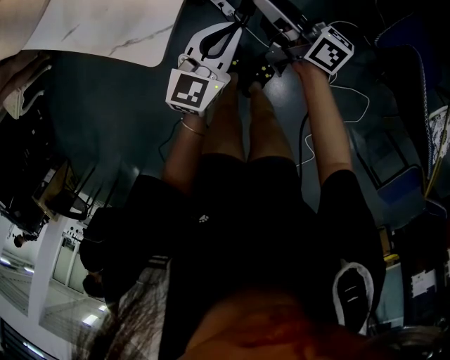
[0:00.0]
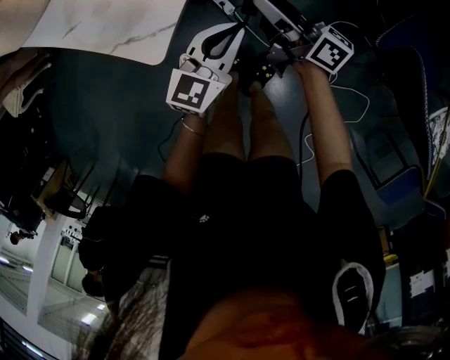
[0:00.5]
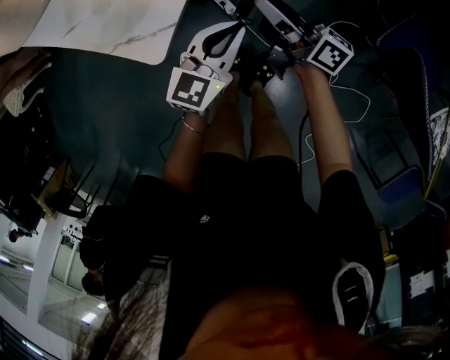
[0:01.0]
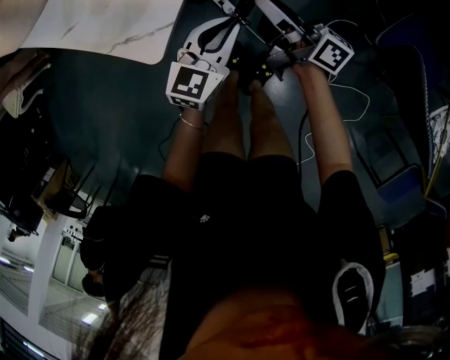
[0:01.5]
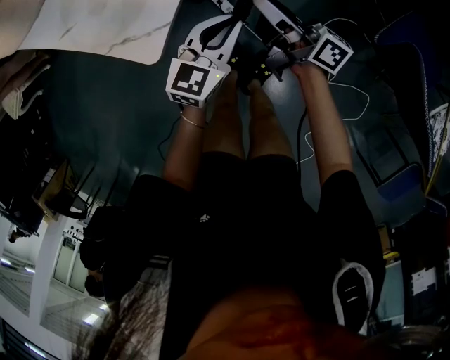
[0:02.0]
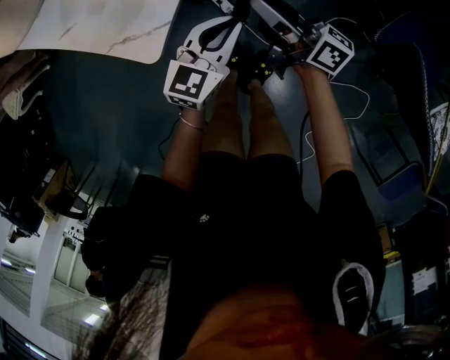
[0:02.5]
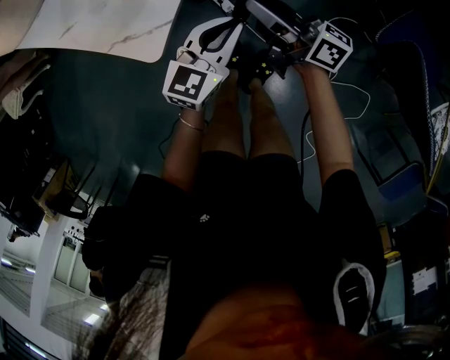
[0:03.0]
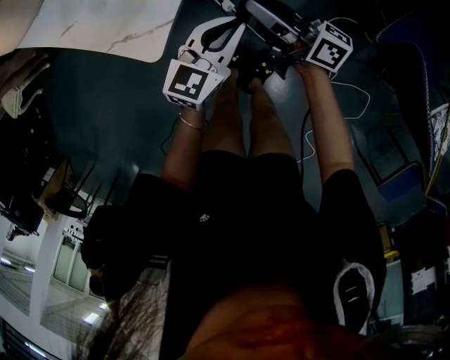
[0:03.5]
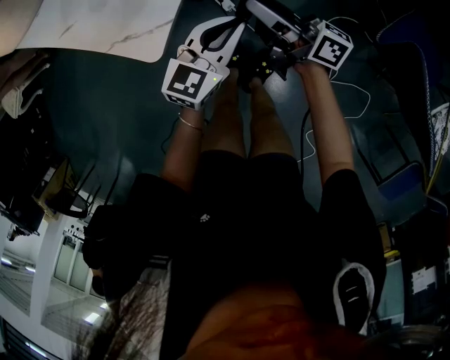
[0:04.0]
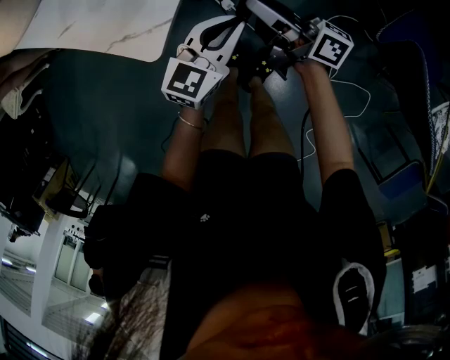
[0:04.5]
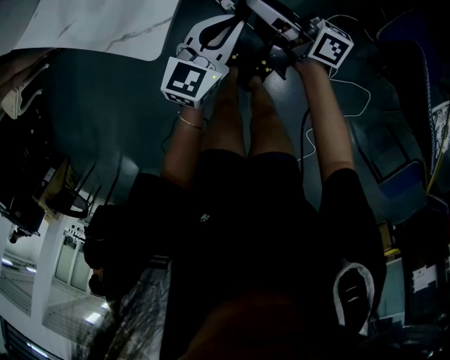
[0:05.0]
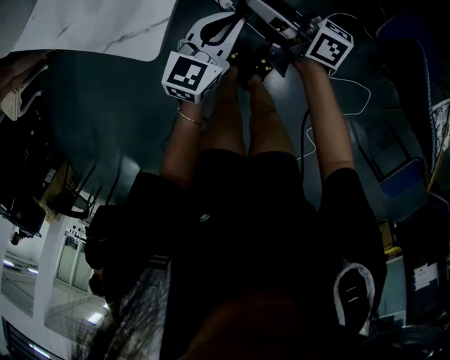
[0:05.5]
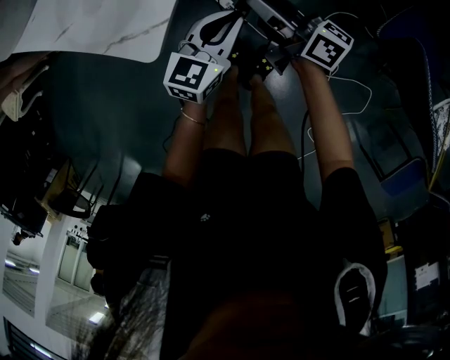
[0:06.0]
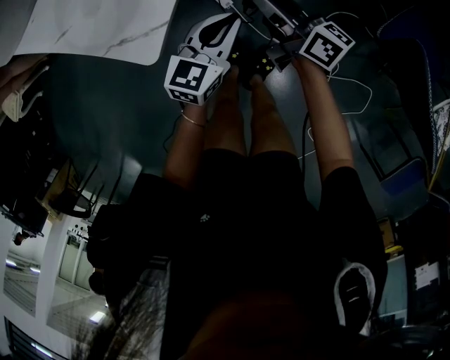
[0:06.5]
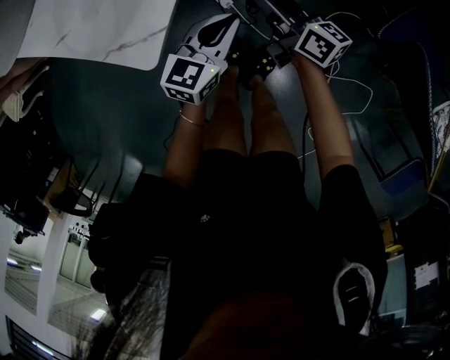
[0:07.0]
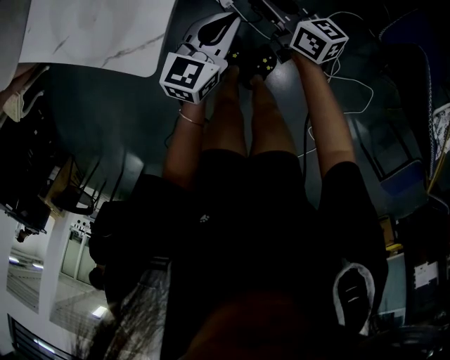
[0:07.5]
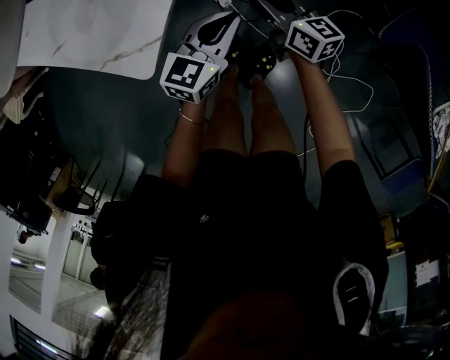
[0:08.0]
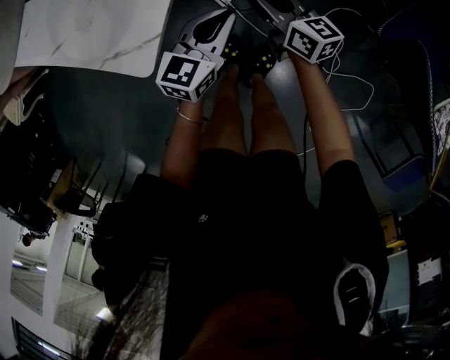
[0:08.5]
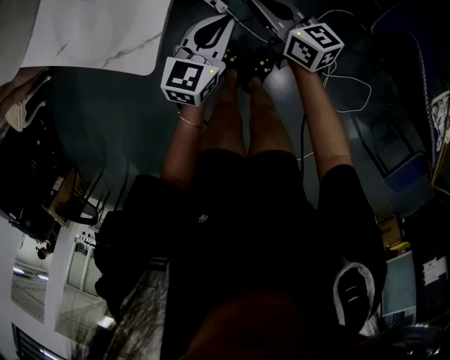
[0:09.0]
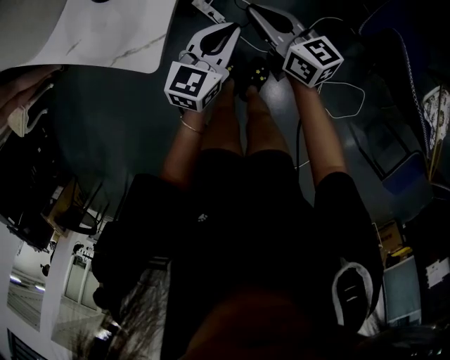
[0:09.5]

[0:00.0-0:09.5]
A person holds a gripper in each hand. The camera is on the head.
0:00.0 to 0:05.5: The grippers make only small movements.
0:05.5 to 0:07.5: The right gripper shifts approximately 10 cm downward, and turns by about 30 degrees.
0:07.5 to 0:09.5: The left gripper changes place by approximately 5 cm. Meanwhile the right gripper travels upward by approximately 10 cm.

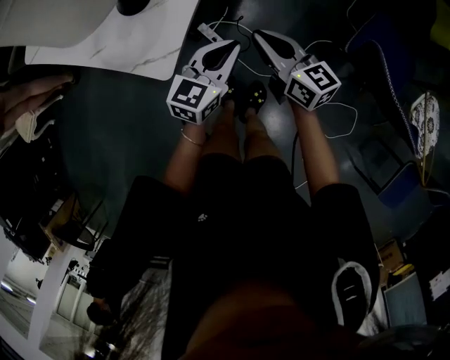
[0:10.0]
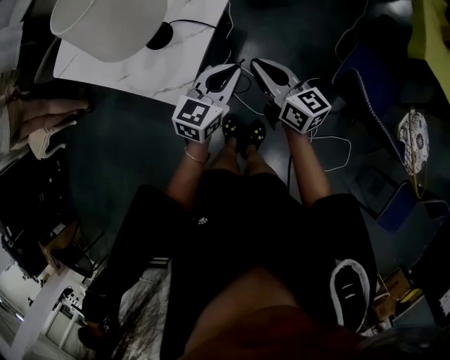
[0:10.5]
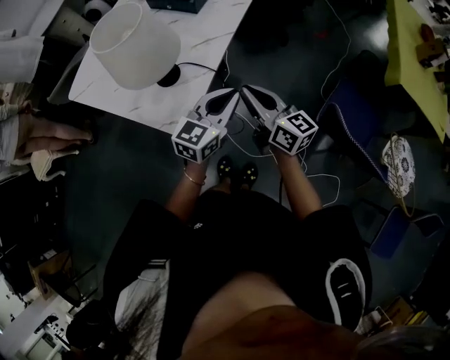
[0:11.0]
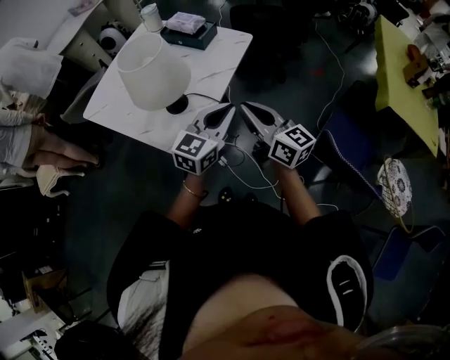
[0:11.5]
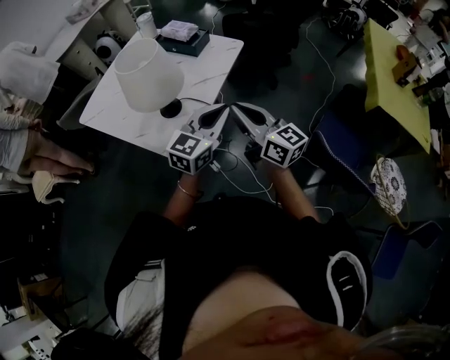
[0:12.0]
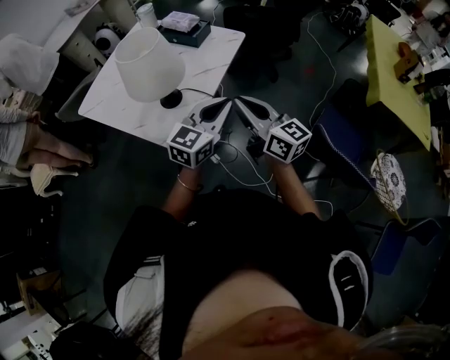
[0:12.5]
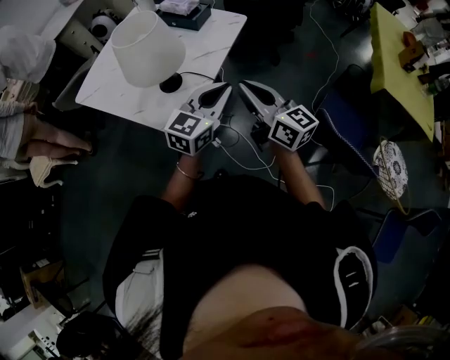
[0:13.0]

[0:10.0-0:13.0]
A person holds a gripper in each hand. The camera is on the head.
0:10.0 to 0:11.5: The grippers both shift upward by some 25 cm.
0:11.5 to 0:13.0: The grippers stay close to where they were, moving slightly.

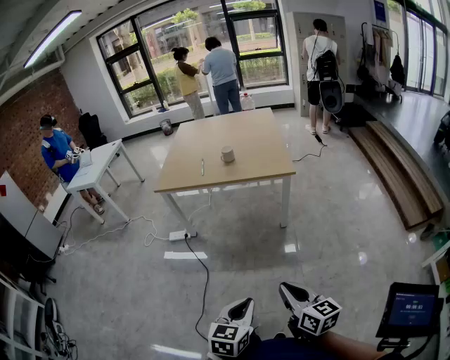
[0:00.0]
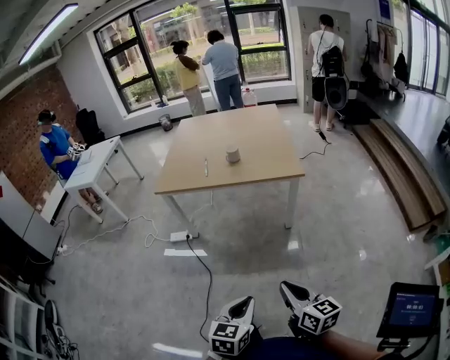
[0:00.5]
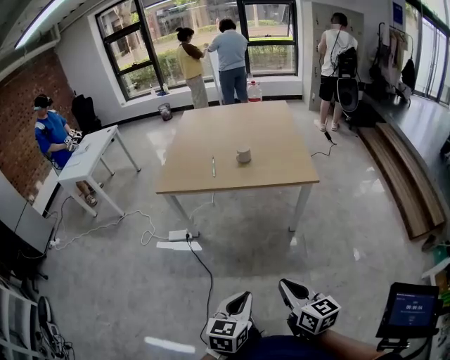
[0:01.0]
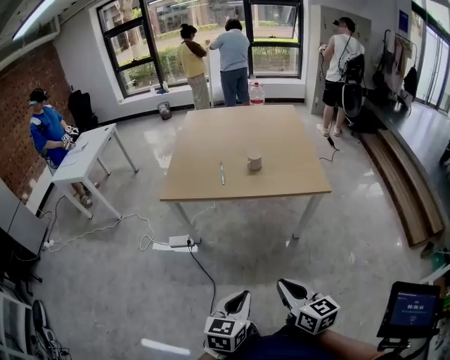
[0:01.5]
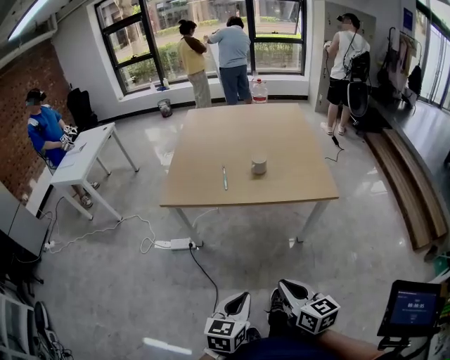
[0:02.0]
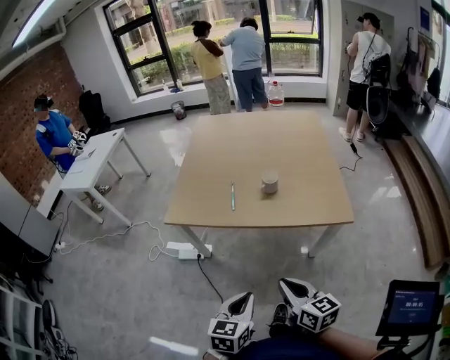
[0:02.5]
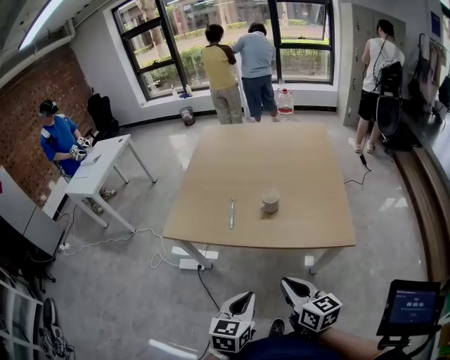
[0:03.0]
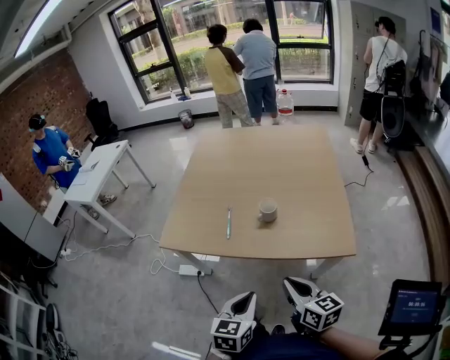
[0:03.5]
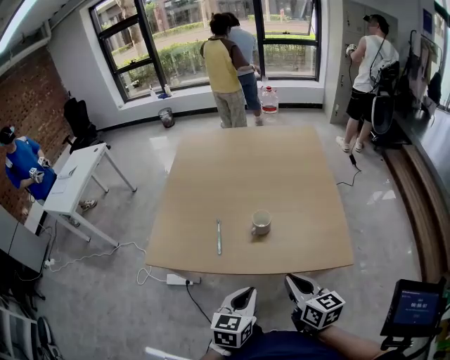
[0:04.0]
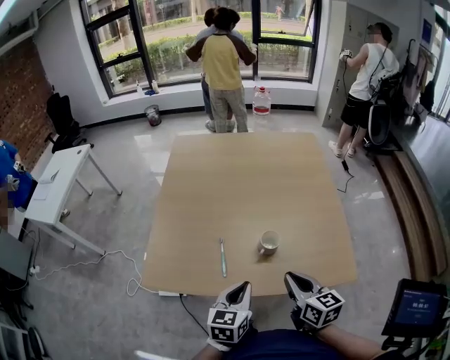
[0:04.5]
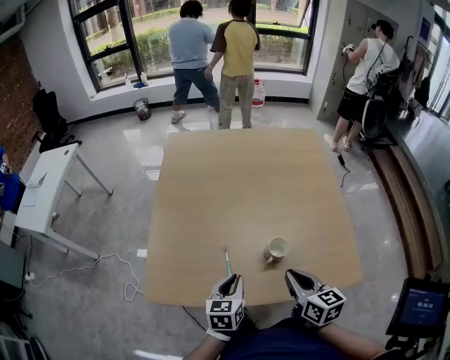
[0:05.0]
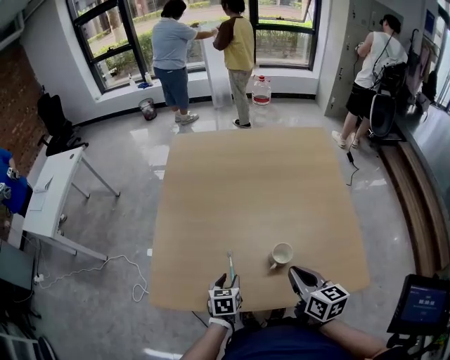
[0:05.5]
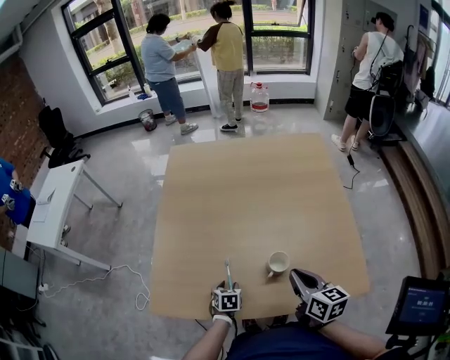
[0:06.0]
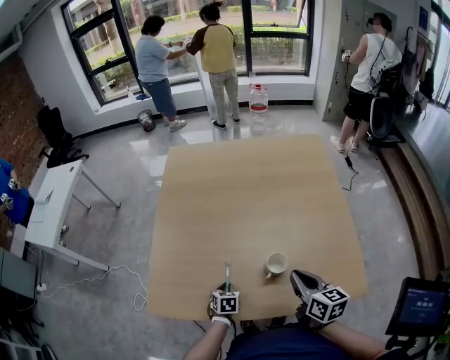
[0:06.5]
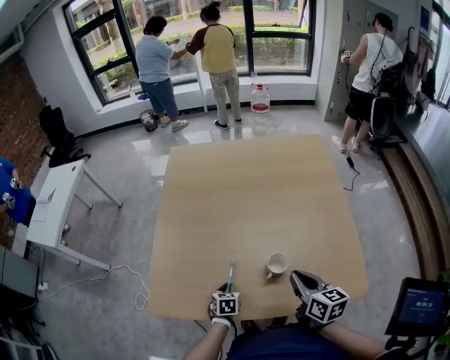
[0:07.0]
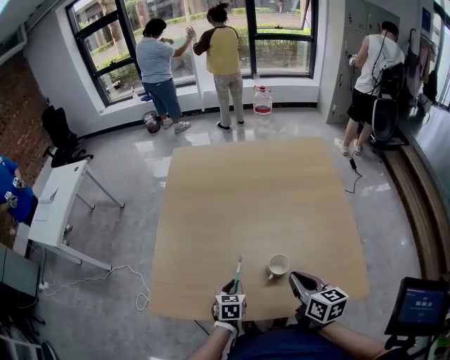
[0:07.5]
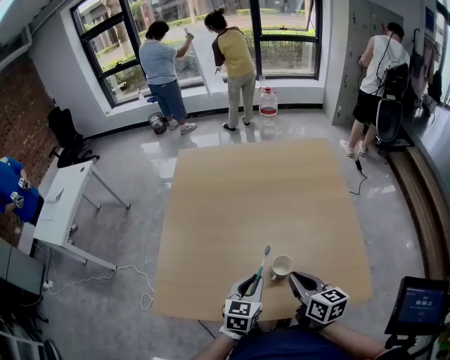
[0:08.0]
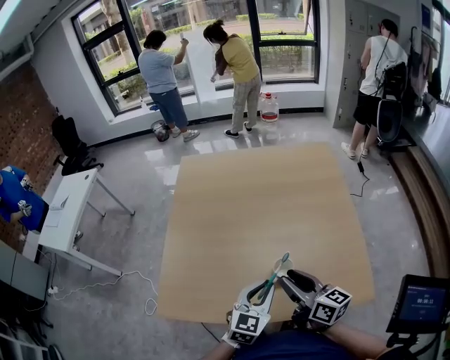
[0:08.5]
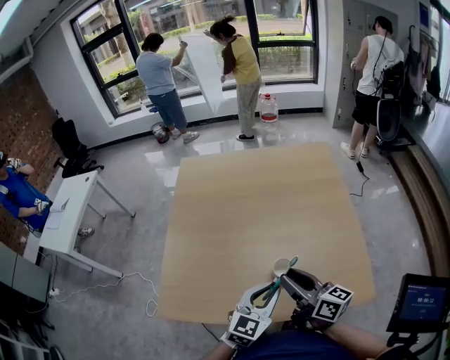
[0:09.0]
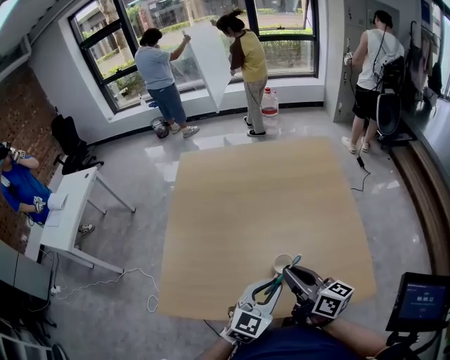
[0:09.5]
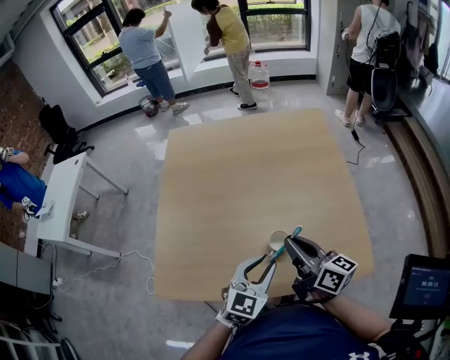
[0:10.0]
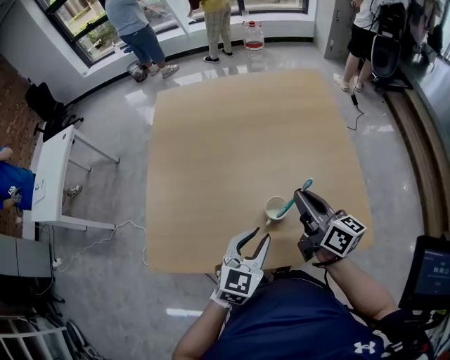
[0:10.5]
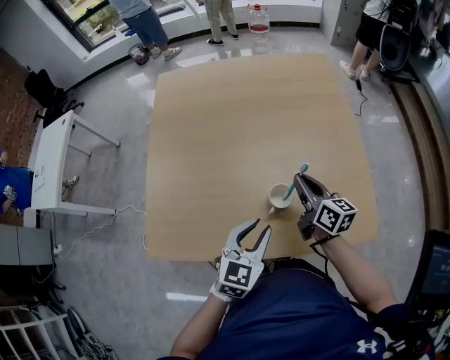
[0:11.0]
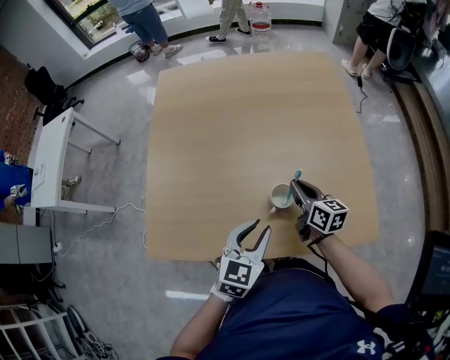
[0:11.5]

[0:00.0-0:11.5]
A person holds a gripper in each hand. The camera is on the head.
0:00.0 to 0:02.0: Both grippers travel together forward and to the left, about 35 cm.
0:02.0 to 0:04.0: The grippers both shift forward by roughly 35 cm.
0:04.0 to 0:06.0: The right gripper heads forward, covering some 20 cm, while the left gripper heads forward, downward and to the left, covering roughly 40 cm, points its fingers approximately 30 degrees further downward, and opens its fingers.
0:06.0 to 0:07.5: The left gripper heads upward, covering about 5 cm, and closes.
0:07.5 to 0:09.5: The right gripper moves upward, approximately 5 cm, turns by about 20 degrees, and opens and closes again. The left gripper goes approximately 25 cm upward and to the right, and rotates about 40 degrees.
0:09.5 to 0:11.5: The left gripper heads downward, covering approximately 5 cm. The right gripper goes approximately 20 cm downward and forward, and turns by roughly 20 degrees.

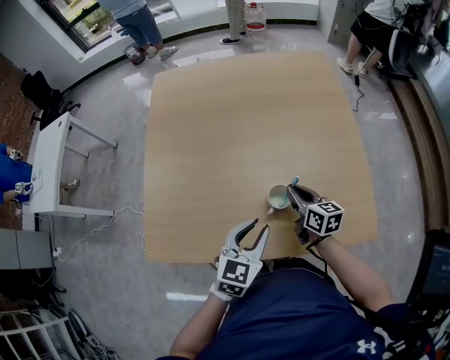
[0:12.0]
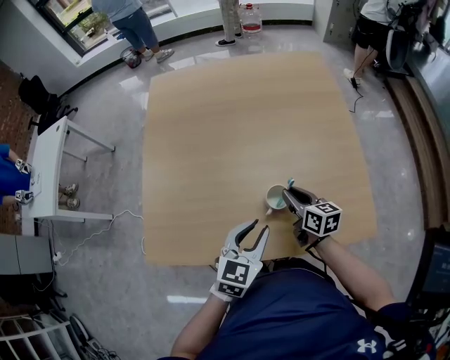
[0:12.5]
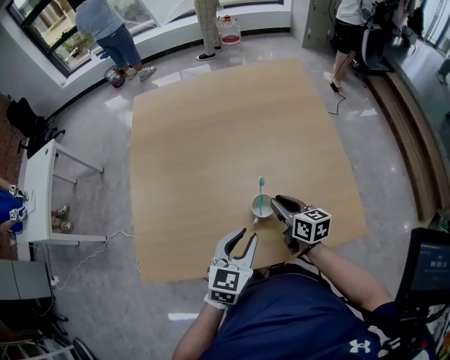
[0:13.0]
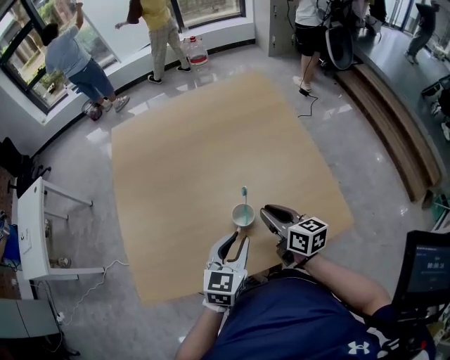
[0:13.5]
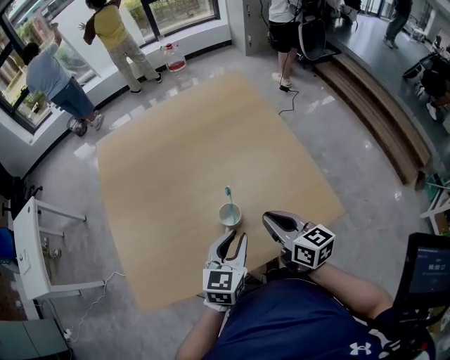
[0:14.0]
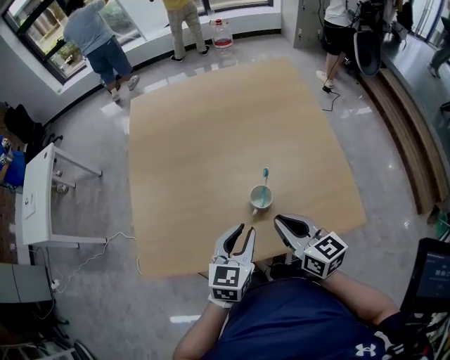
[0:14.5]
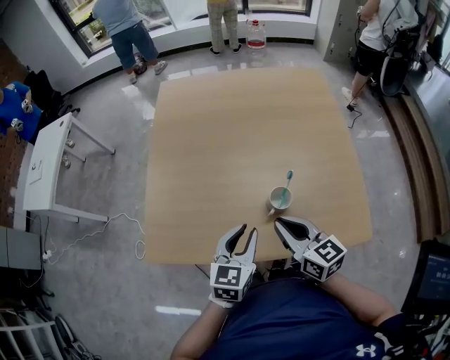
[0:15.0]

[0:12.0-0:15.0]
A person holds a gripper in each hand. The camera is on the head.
0:12.0 to 0:13.5: The right gripper moves upward, about 5 cm.
0:13.5 to 0:15.0: The right gripper goes approximately 10 cm to the left, backward and upward, and changes its angle by approximately 20 degrees, while the left gripper heads to the left, covering approximately 5 cm.
